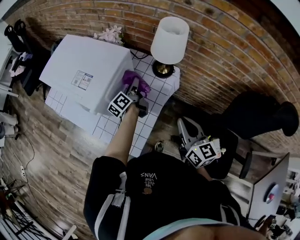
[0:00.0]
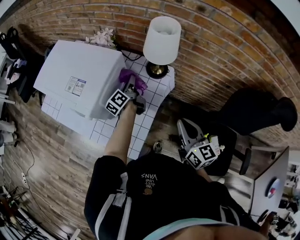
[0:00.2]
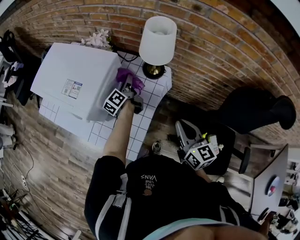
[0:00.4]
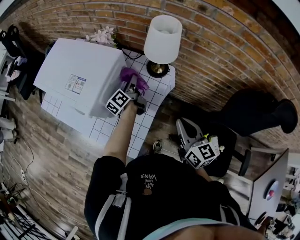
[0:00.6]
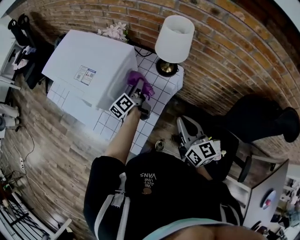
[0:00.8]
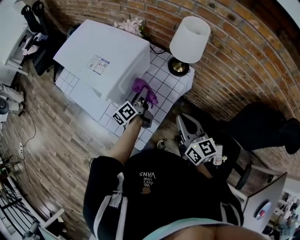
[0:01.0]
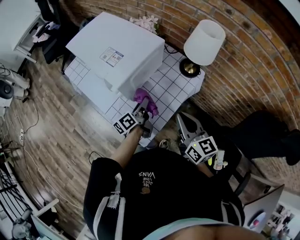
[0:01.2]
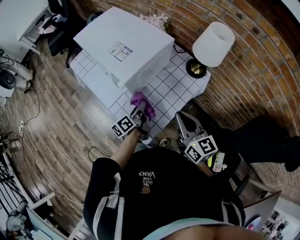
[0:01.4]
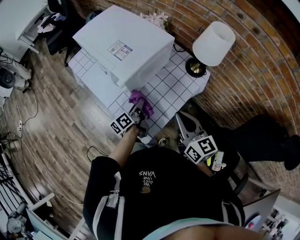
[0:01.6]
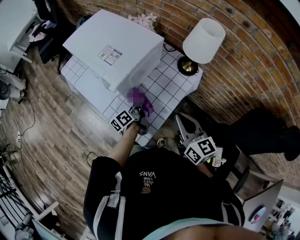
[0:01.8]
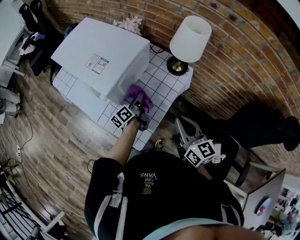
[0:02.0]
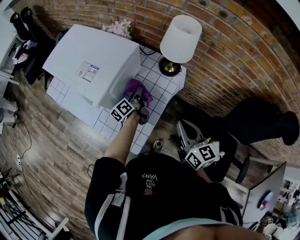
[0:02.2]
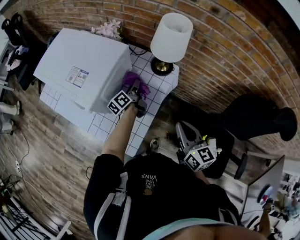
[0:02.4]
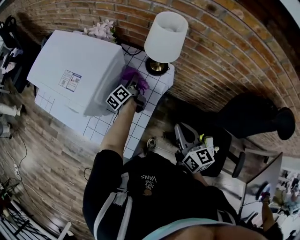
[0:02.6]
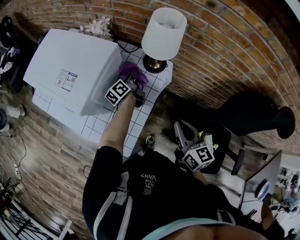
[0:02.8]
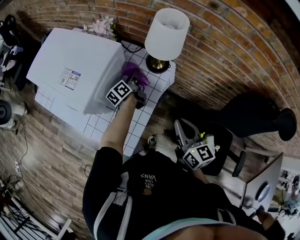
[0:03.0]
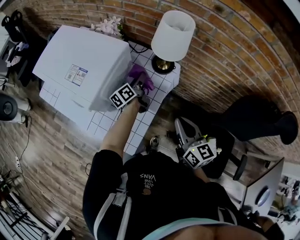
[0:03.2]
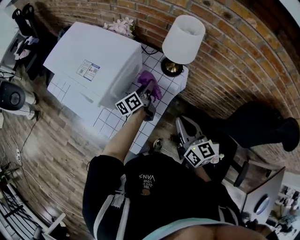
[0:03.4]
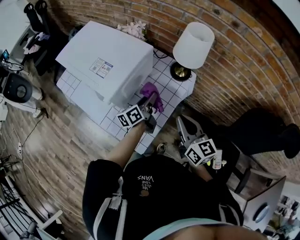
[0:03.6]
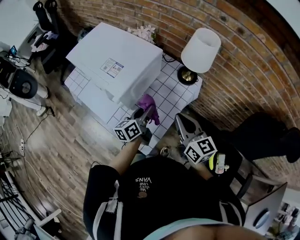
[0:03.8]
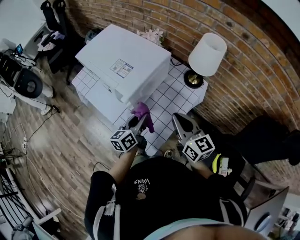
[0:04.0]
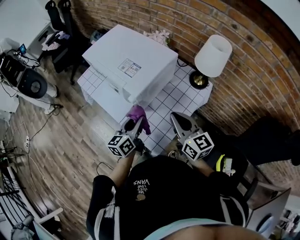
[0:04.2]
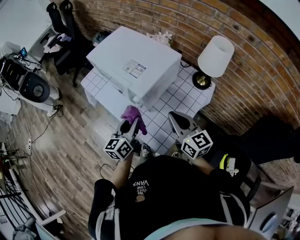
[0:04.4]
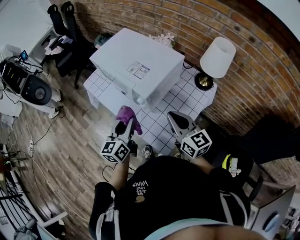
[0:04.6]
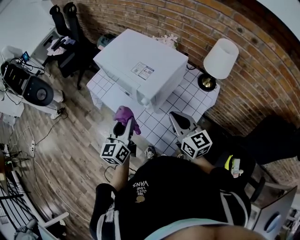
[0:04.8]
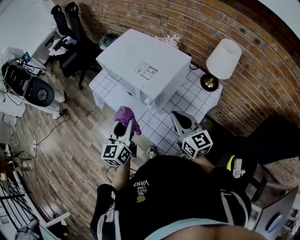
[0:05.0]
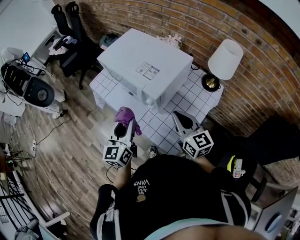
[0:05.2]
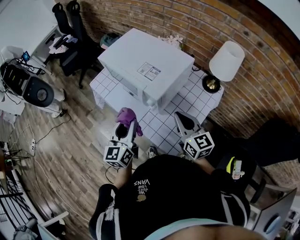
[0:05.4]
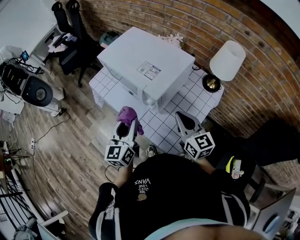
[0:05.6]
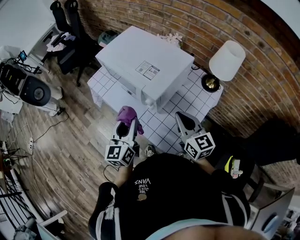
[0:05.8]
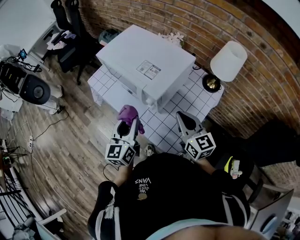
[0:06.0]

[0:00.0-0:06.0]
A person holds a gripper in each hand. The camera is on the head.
0.0 to 1.6 s: The left gripper moves backward and to the left, approximately 20 cm, while the right gripper moves to the left, approximately 10 cm, and rotates roughly 20 degrees.
1.6 to 3.0 s: The left gripper heads forward and to the right, covering some 25 cm, while the right gripper moves to the right, about 15 cm, and swivels about 20 degrees.
3.0 to 4.4 s: The right gripper goes roughly 20 cm to the left, and swivels some 30 degrees, while the left gripper travels backward, to the left and upward by approximately 40 cm, and rotates about 40 degrees.
4.4 to 6.0 s: The left gripper goes some 5 cm to the left.

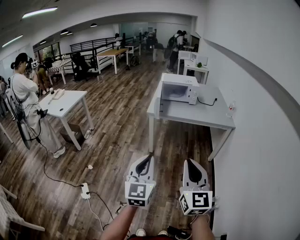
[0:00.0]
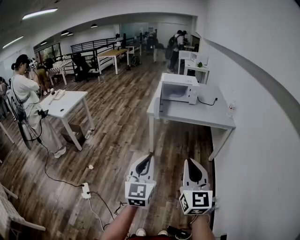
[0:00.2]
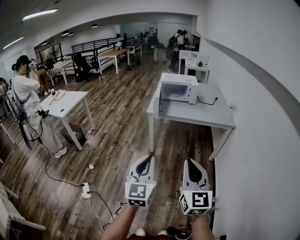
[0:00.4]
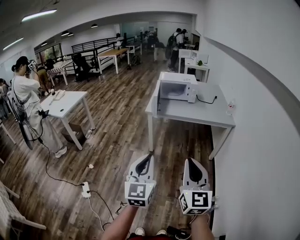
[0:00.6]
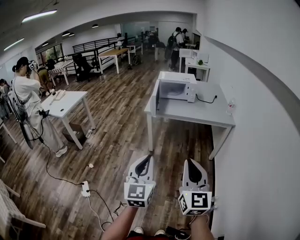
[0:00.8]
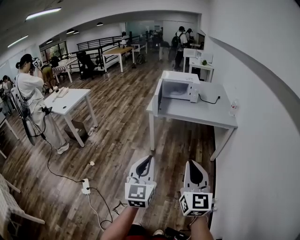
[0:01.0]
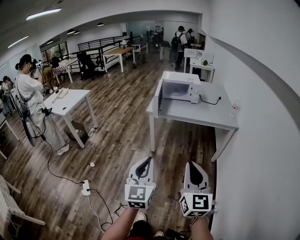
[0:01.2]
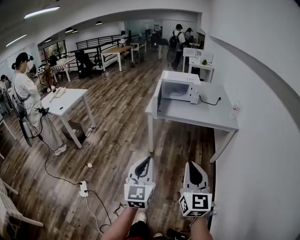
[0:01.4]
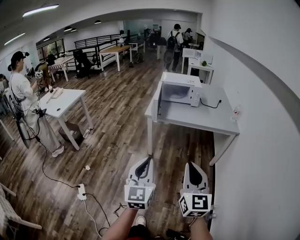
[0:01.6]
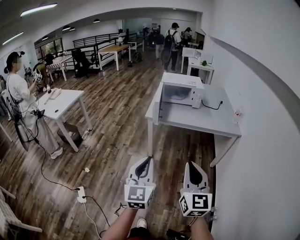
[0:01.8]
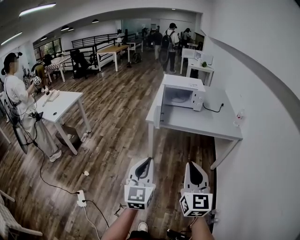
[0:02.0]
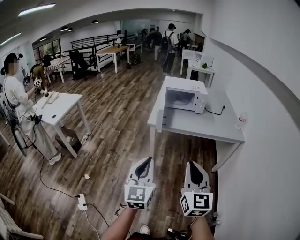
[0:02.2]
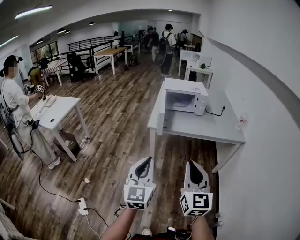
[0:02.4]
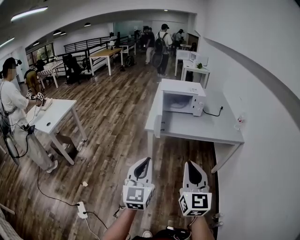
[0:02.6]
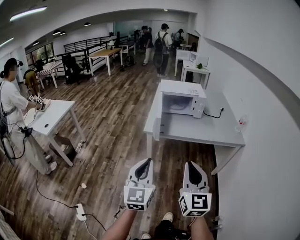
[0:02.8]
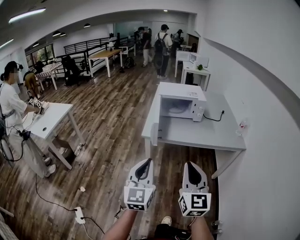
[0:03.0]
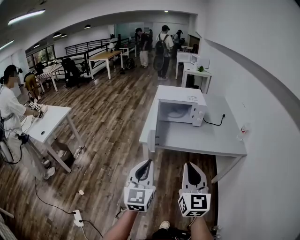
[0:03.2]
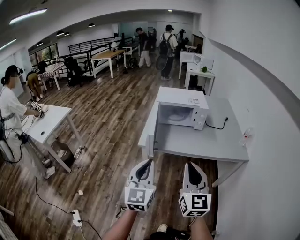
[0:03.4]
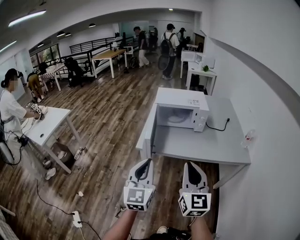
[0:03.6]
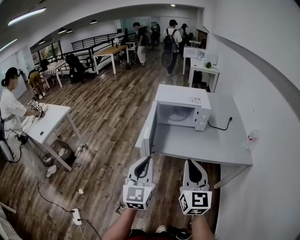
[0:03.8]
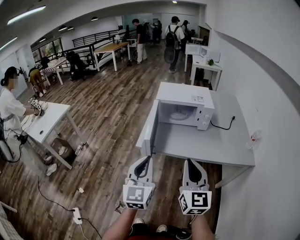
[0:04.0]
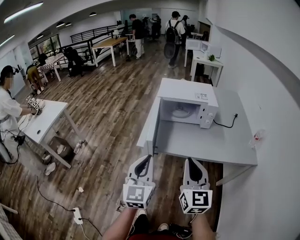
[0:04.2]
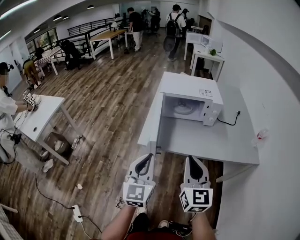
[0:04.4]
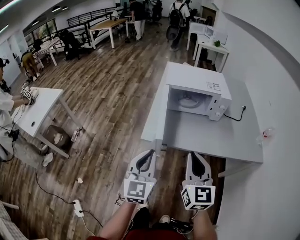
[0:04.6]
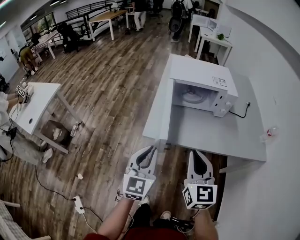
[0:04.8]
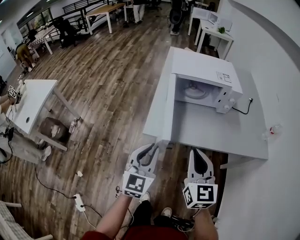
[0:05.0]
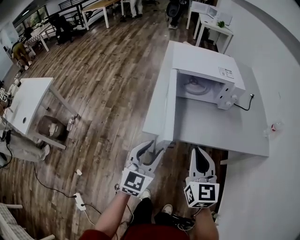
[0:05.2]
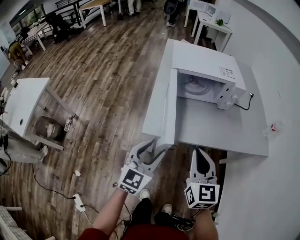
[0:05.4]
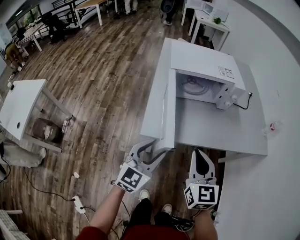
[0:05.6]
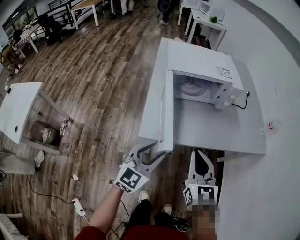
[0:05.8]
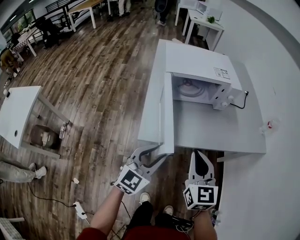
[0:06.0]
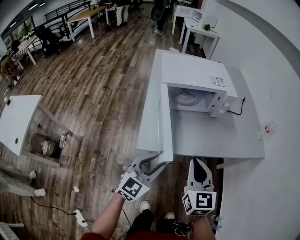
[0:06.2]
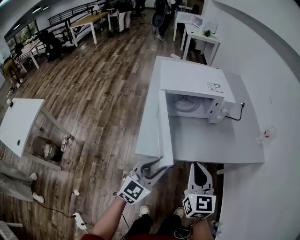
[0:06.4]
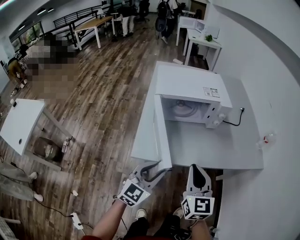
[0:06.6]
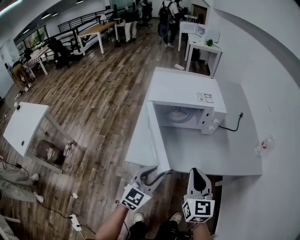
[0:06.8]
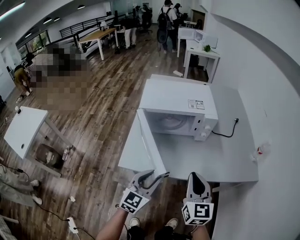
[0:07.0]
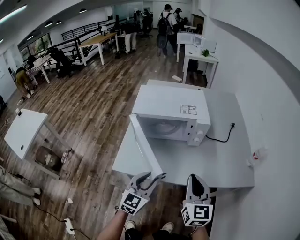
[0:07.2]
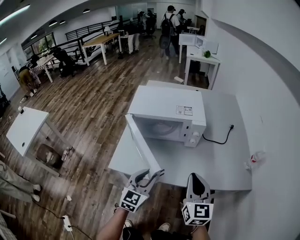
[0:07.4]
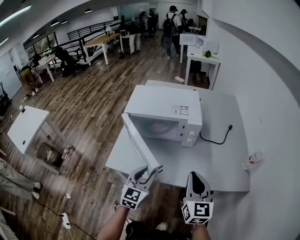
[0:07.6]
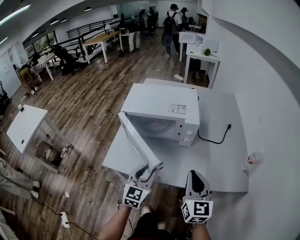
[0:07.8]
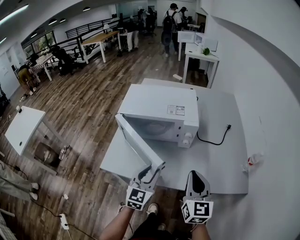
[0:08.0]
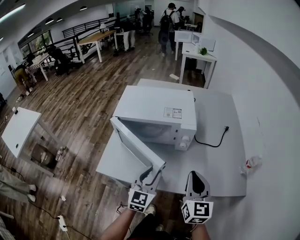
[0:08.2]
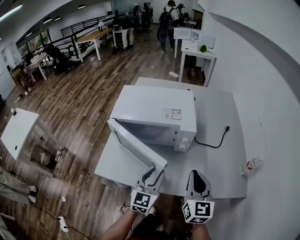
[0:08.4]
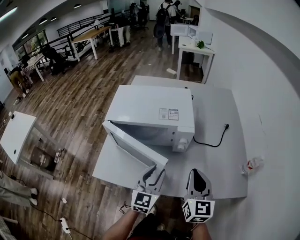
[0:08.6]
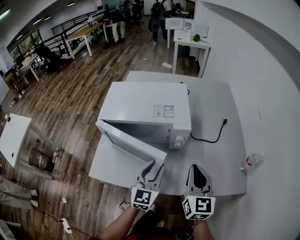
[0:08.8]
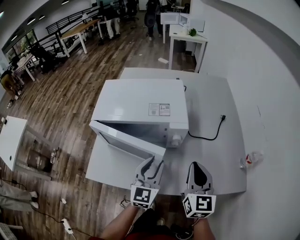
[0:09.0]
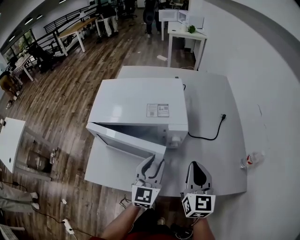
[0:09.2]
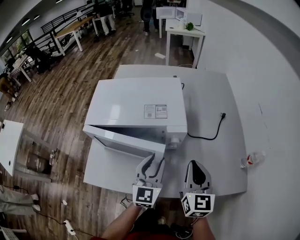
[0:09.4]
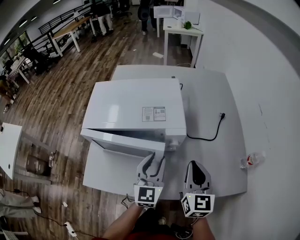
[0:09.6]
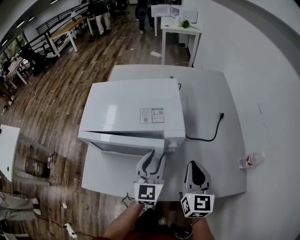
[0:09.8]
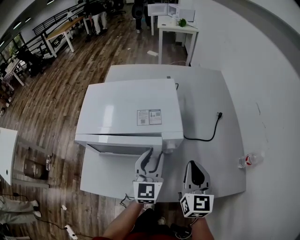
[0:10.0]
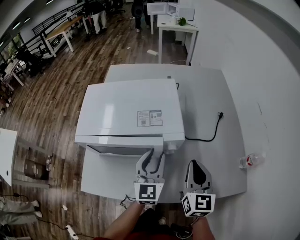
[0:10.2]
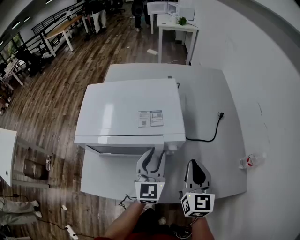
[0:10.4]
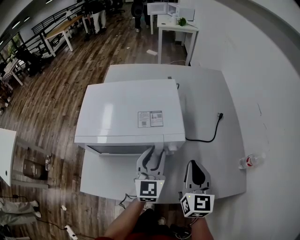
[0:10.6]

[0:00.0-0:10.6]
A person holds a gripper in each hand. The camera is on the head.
0.0 to 1.6 s: The left gripper is displaced forward by about 10 cm. Meanwhile the right gripper heads forward and to the right, covering some 10 cm.
1.6 to 3.0 s: Both grippers move forward, about 25 cm.
3.0 to 4.6 s: Both grippers travel together forward, some 30 cm.
4.6 to 6.0 s: The left gripper shifts roughly 15 cm downward and forward, rotates roughly 40 degrees, and opens its fingers, while the right gripper shifts roughly 10 cm forward and downward.
6.0 to 7.6 s: Both grippers travel together to the right and forward, approximately 25 cm. The left gripper changes its angle by about 20 degrees.
7.6 to 9.0 s: The right gripper is displaced forward by roughly 15 cm; the left gripper is displaced forward and to the right by approximately 15 cm.
9.0 to 10.6 s: The right gripper travels forward by some 5 cm; the left gripper goes some 10 cm forward.

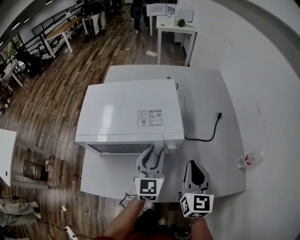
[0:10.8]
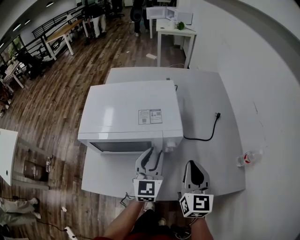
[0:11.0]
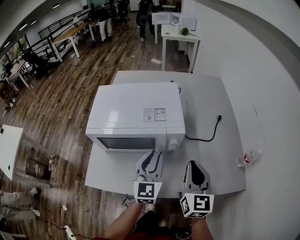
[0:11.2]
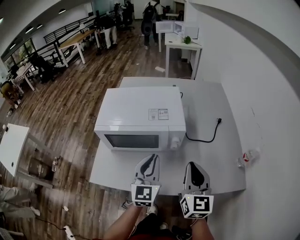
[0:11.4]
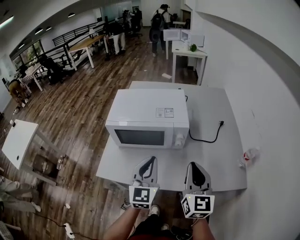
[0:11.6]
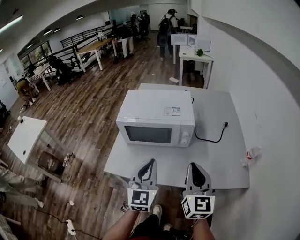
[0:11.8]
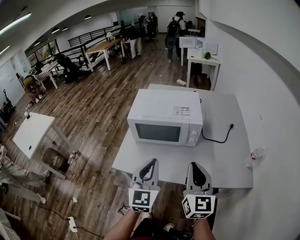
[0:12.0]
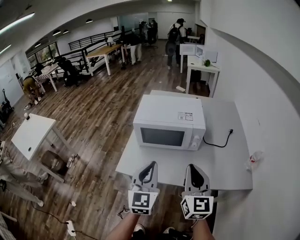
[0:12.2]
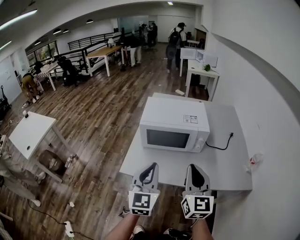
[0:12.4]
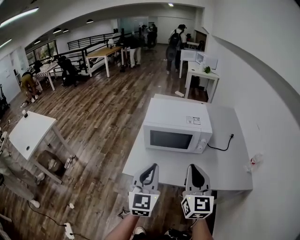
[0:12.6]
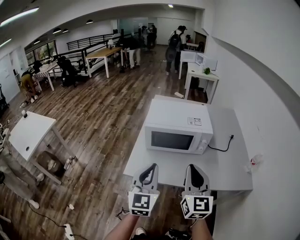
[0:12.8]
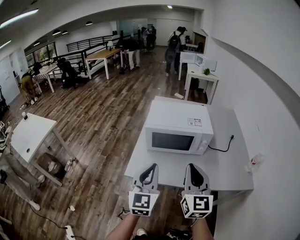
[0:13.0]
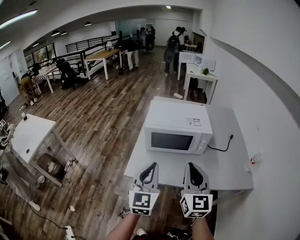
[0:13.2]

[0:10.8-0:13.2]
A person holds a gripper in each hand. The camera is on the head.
10.8 to 12.0 s: The right gripper goes roughly 25 cm backward, upward and to the left, while the left gripper goes roughly 30 cm backward and upward, and closes its fingers.
12.0 to 13.2 s: Both grippers travel together to the left, roughly 10 cm.

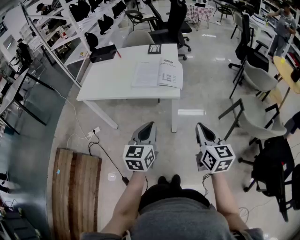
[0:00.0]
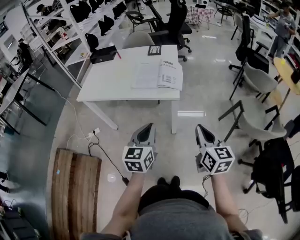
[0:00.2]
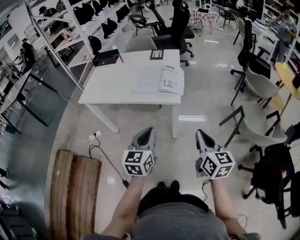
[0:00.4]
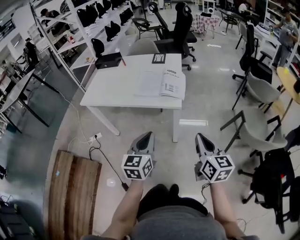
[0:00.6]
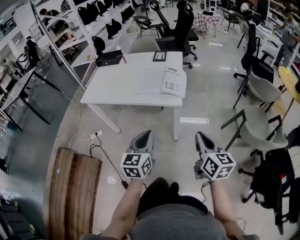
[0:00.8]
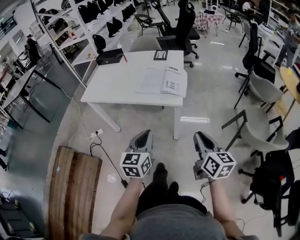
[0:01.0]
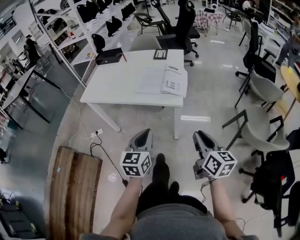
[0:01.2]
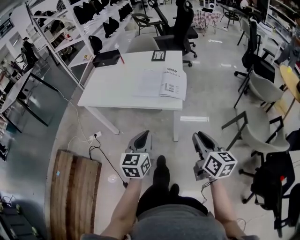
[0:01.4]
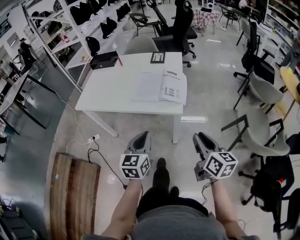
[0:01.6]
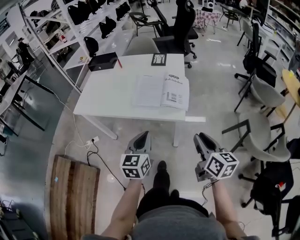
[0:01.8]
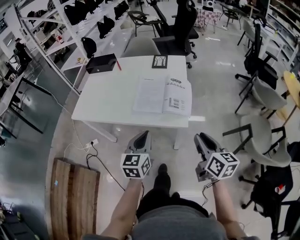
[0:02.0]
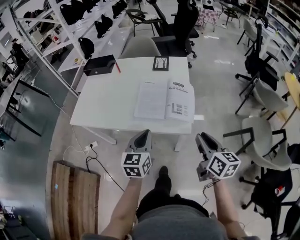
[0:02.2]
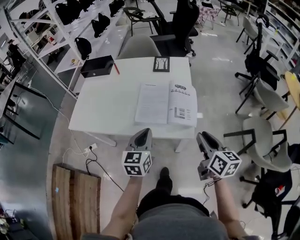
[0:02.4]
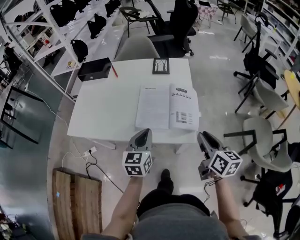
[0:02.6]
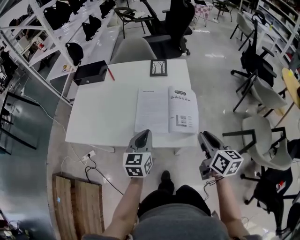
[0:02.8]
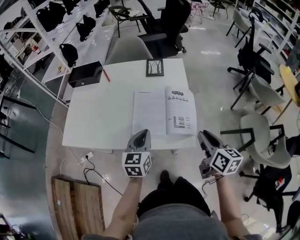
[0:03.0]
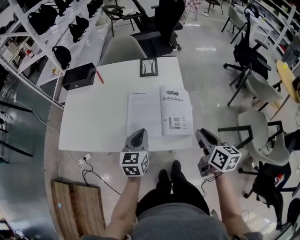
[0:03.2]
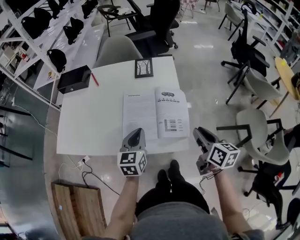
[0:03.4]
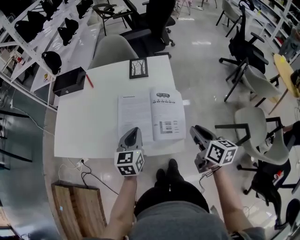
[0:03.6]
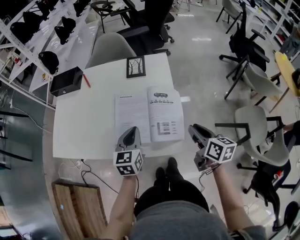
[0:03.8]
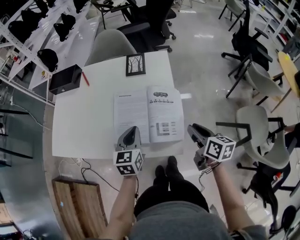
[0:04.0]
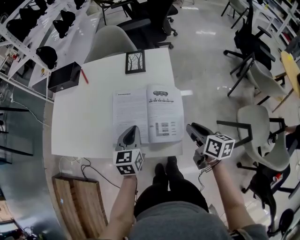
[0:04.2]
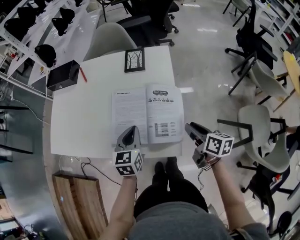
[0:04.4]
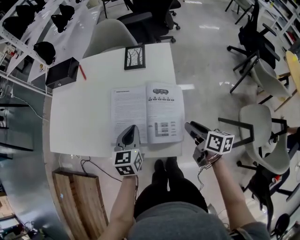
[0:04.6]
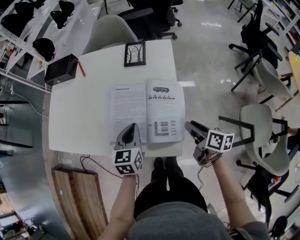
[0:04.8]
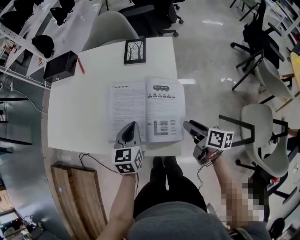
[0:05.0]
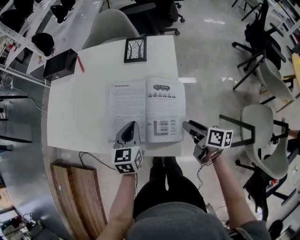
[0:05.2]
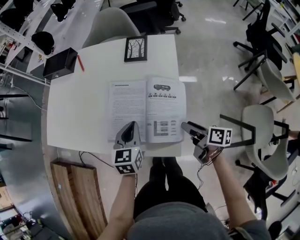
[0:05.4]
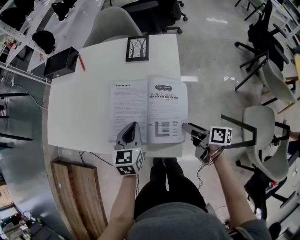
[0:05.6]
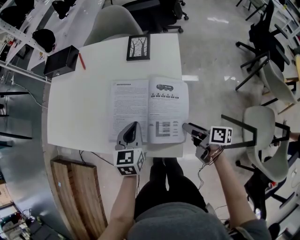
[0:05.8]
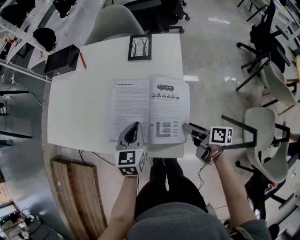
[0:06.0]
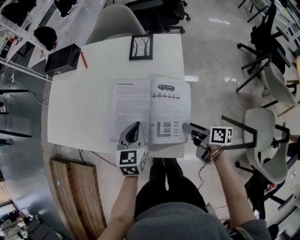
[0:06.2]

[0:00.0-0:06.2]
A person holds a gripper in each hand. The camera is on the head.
0.0 to 1.6 s: The grippers both shift forward by roughly 5 cm. The right gripper opens its fingers.
1.6 to 3.2 s: Both grippers move forward, some 25 cm.
3.2 to 4.6 s: The right gripper goes some 15 cm downward and forward, and turns by about 20 degrees. Meanwhile the left gripper travels forward by roughly 5 cm.
4.6 to 6.2 s: The right gripper travels downward by approximately 5 cm, and rotates about 20 degrees.
